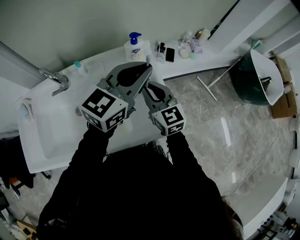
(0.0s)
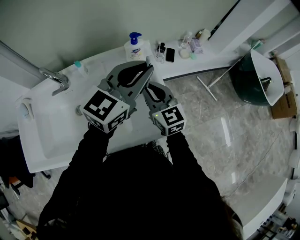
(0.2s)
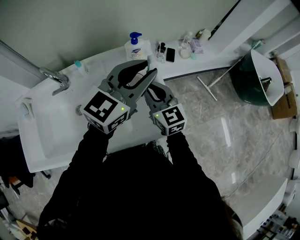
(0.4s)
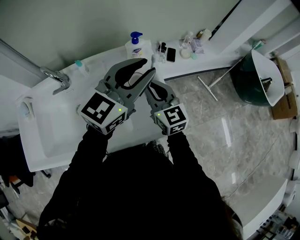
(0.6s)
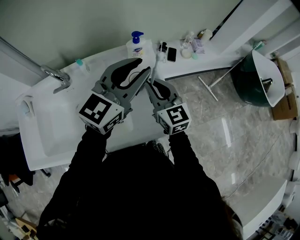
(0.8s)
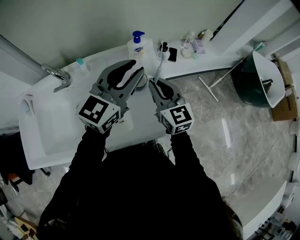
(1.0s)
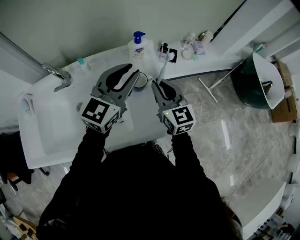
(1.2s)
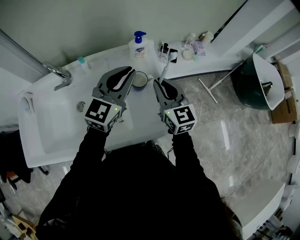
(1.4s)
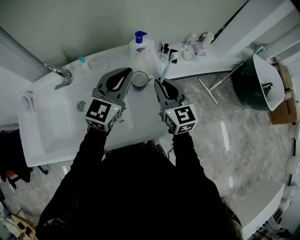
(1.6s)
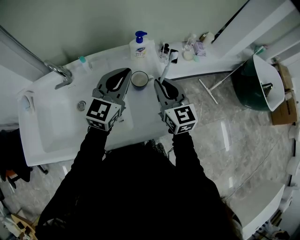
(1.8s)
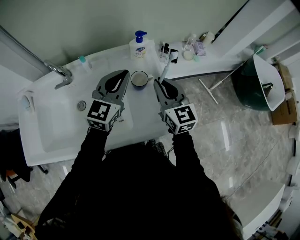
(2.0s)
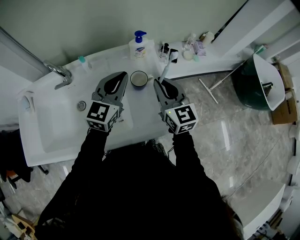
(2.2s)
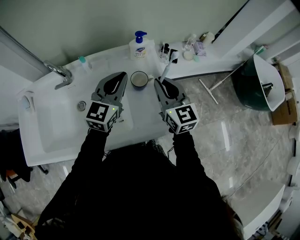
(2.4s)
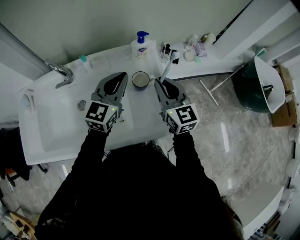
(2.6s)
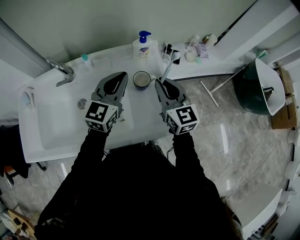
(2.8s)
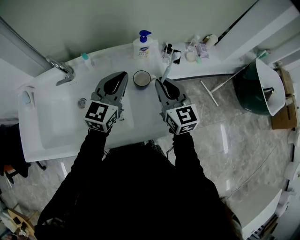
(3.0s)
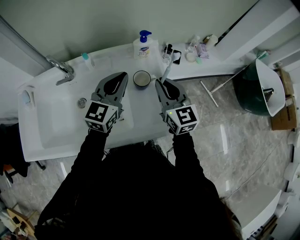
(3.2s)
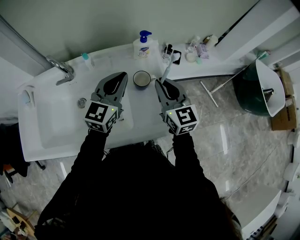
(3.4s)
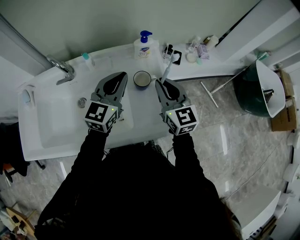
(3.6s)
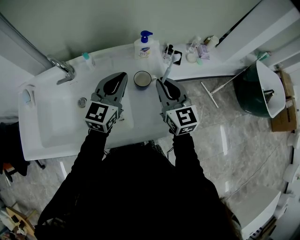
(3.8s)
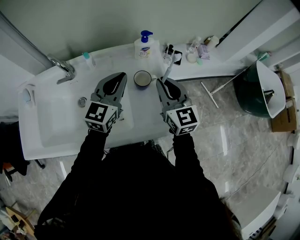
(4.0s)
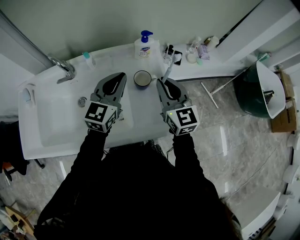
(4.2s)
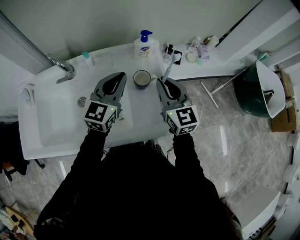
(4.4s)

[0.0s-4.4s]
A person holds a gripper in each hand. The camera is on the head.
0.0s to 1.4s: The left gripper is displaced to the left by about 5 cm.
1.4s to 3.0s: The left gripper moves about 5 cm.
3.0s to 4.4s: The two grippers keep their place.

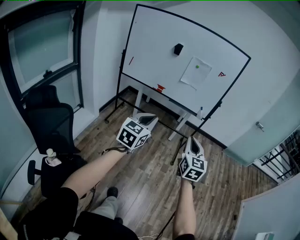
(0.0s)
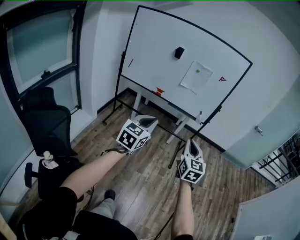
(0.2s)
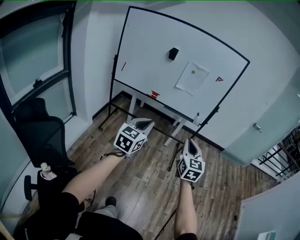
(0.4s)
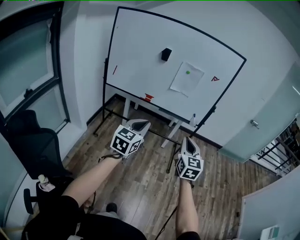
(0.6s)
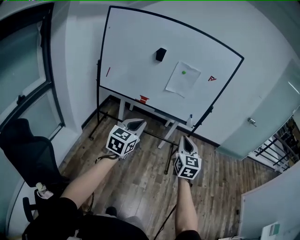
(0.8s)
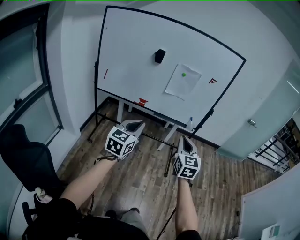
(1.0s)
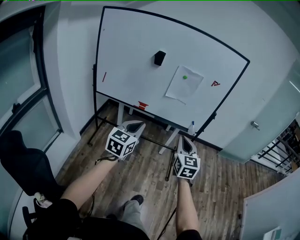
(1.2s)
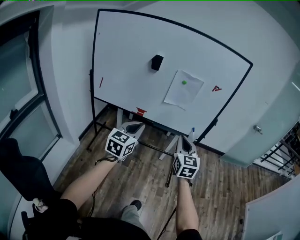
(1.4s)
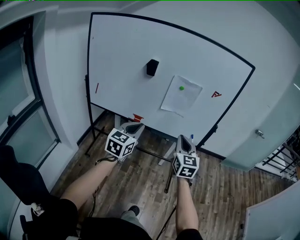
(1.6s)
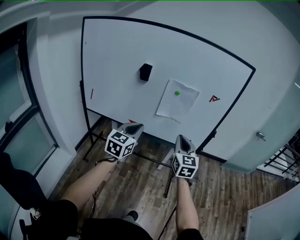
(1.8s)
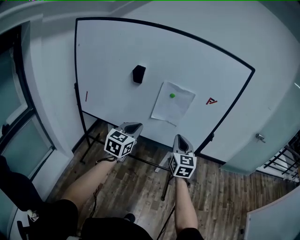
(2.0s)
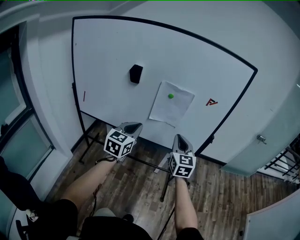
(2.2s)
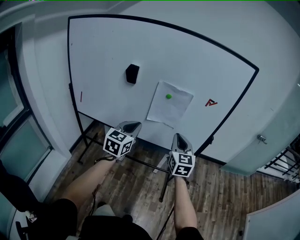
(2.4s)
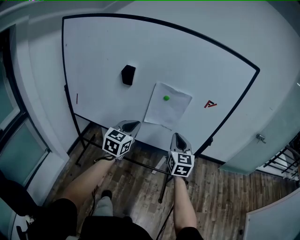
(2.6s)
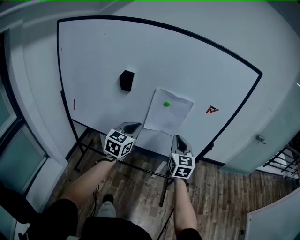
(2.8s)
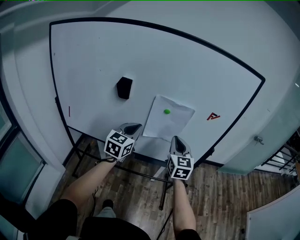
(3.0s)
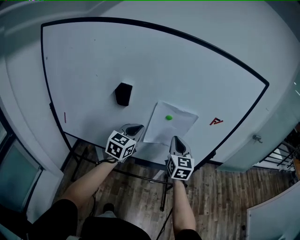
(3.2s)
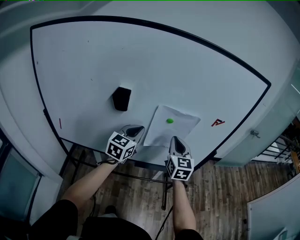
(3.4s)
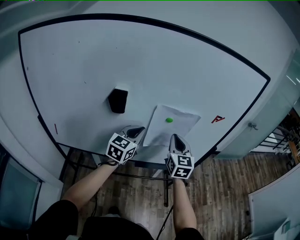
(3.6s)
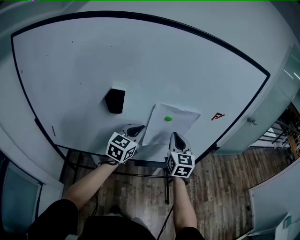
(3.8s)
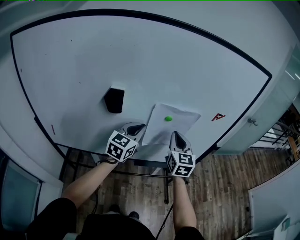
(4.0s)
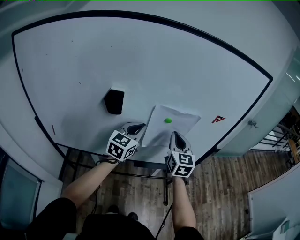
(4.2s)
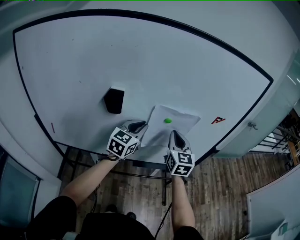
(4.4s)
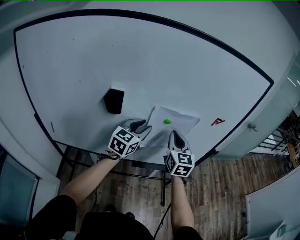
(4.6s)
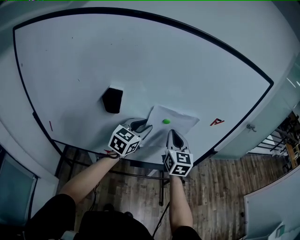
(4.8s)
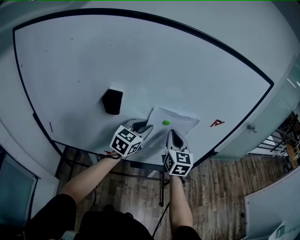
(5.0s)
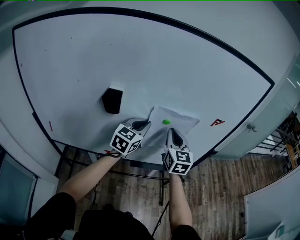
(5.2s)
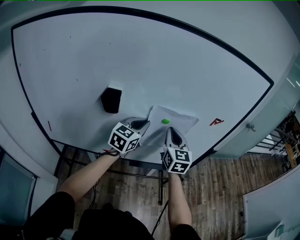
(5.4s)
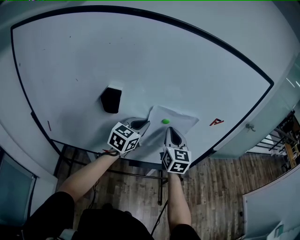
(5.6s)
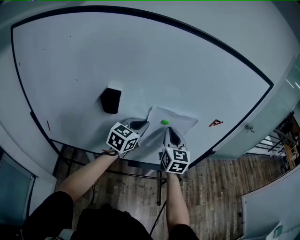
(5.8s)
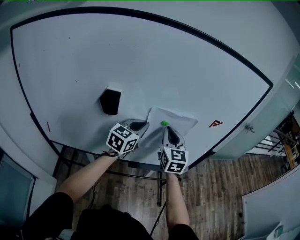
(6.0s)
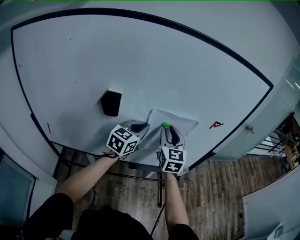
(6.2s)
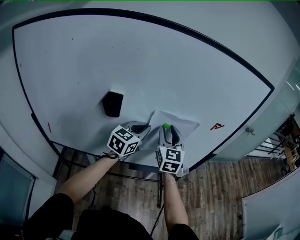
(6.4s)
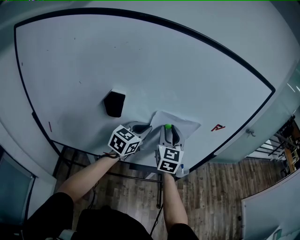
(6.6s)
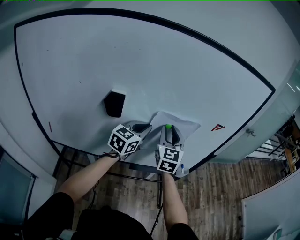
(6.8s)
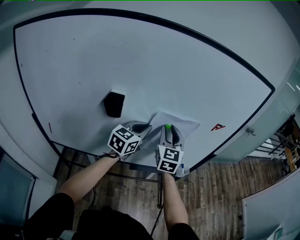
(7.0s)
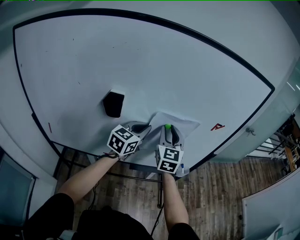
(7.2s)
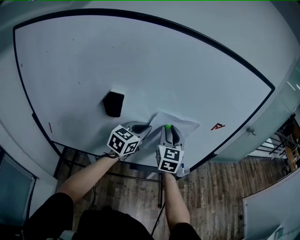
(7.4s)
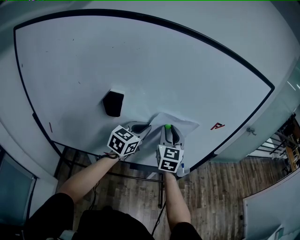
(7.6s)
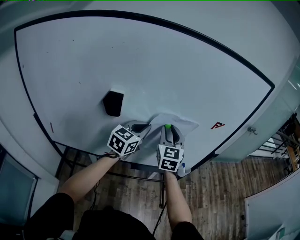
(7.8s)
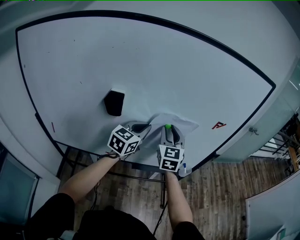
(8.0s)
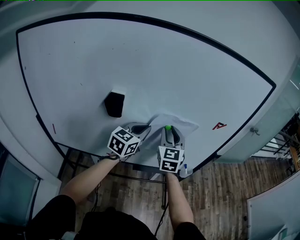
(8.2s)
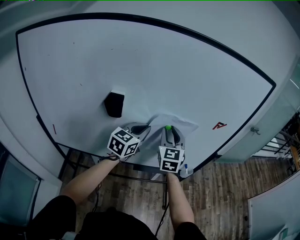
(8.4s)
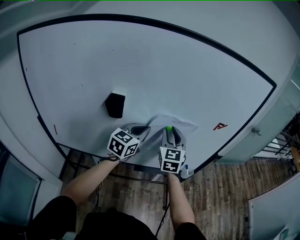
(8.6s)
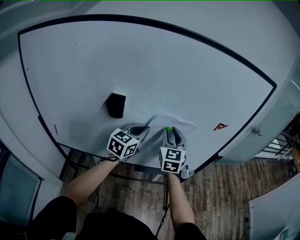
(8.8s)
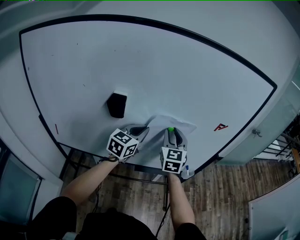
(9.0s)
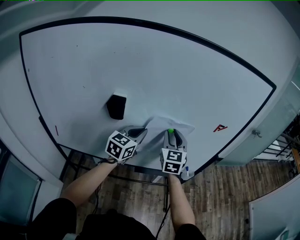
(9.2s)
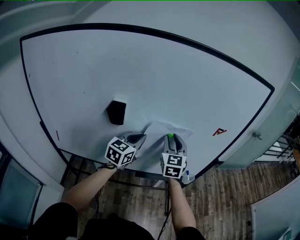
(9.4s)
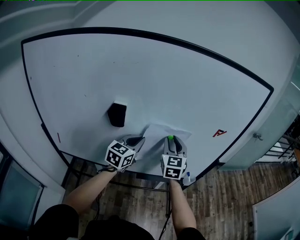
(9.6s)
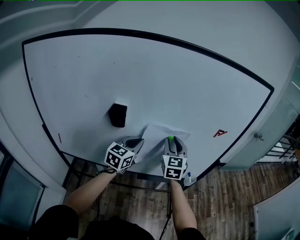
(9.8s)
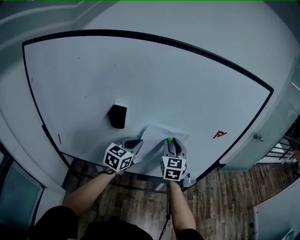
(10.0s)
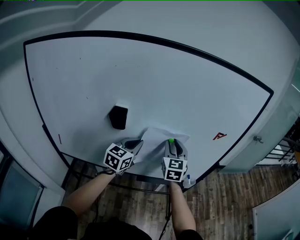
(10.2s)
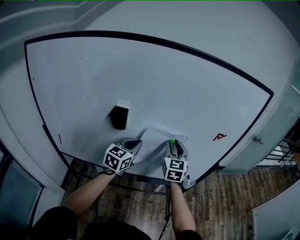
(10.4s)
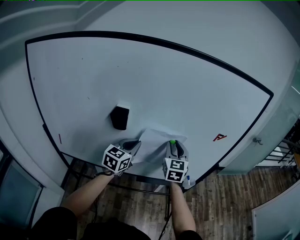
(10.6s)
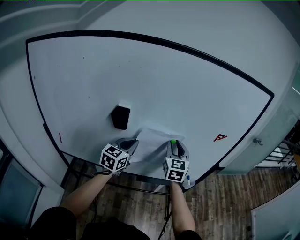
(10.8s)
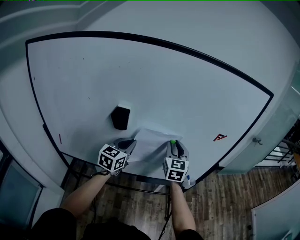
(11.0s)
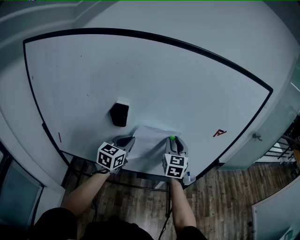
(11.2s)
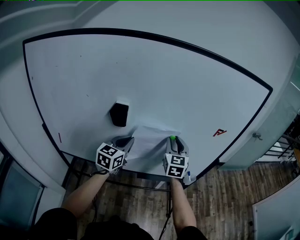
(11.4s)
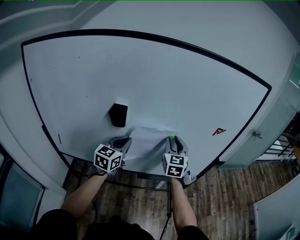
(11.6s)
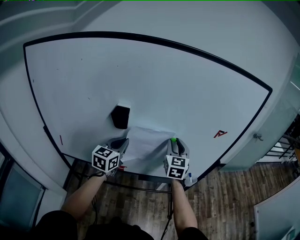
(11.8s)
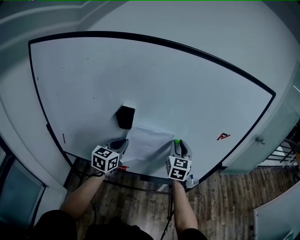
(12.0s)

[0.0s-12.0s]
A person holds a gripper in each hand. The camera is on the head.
0.0s to 1.6s: Both grippers are carried forward, about 40 cm.
1.6s to 3.0s: The grippers both shift forward by some 30 cm.
3.0s to 4.4s: Both grippers move forward, roughly 10 cm.
4.4s to 6.0s: The left gripper opens and closes again.
6.0s to 7.6s: The right gripper opens up.
7.6s to 10.4s: There are only small adjustments of the grippers.
10.4s to 12.0s: The left gripper heads to the left, covering some 10 cm.

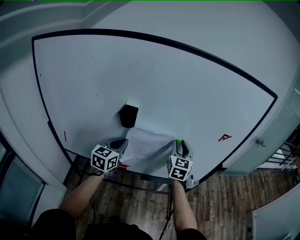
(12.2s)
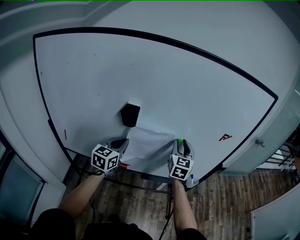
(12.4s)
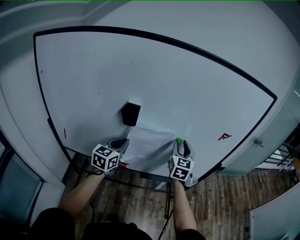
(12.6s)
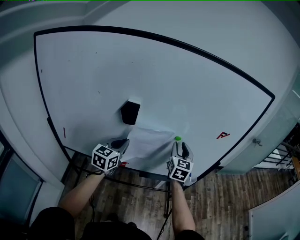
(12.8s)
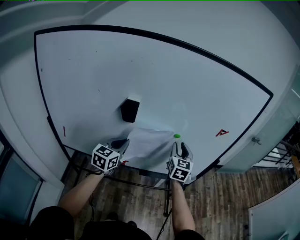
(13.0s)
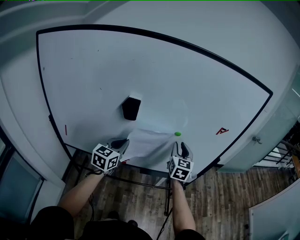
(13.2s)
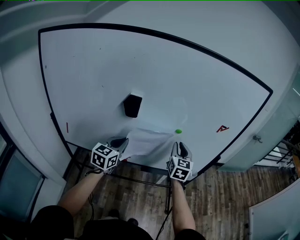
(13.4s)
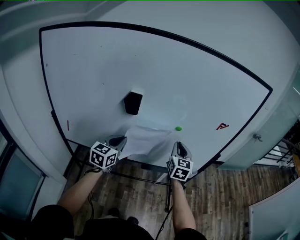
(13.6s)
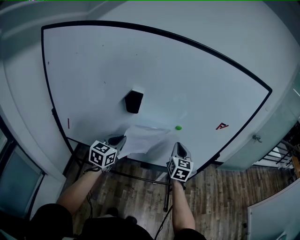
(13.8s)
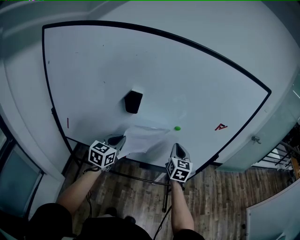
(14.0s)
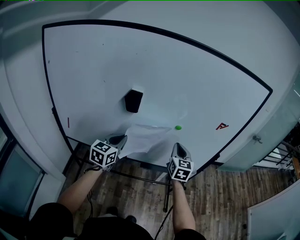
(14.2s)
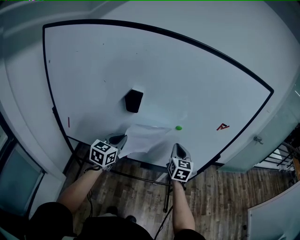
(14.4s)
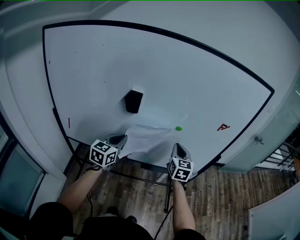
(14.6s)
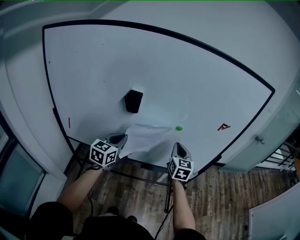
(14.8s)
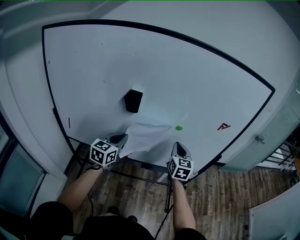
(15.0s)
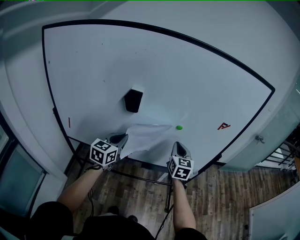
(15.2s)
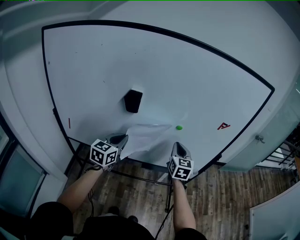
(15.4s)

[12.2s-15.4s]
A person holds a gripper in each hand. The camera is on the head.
12.2s to 13.8s: The two grippers go roughly 5 cm backward. The right gripper closes up.
13.8s to 15.4s: The grippers move only a little.

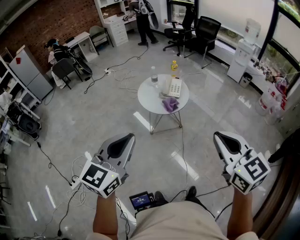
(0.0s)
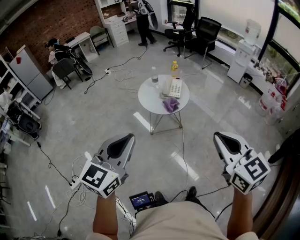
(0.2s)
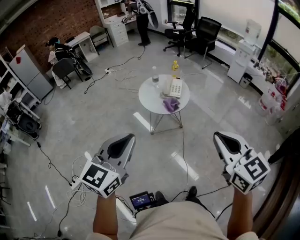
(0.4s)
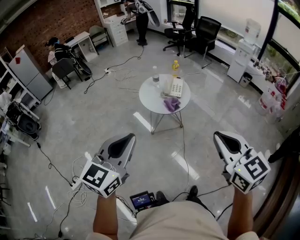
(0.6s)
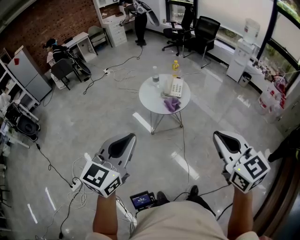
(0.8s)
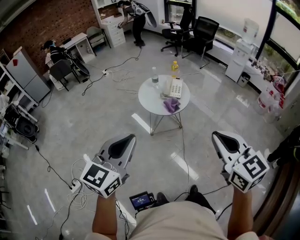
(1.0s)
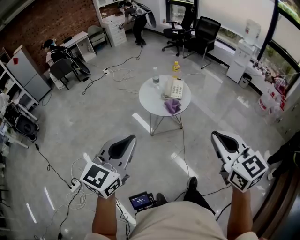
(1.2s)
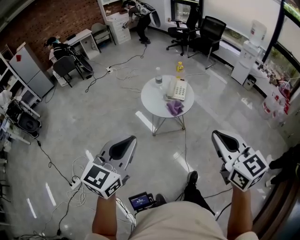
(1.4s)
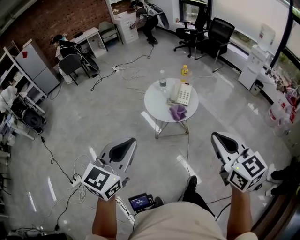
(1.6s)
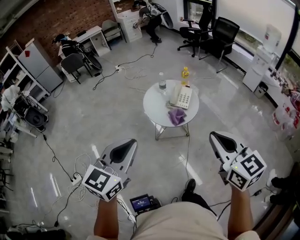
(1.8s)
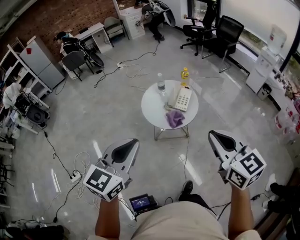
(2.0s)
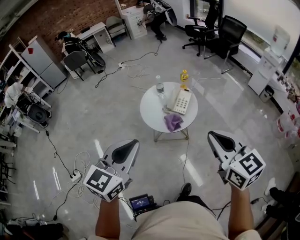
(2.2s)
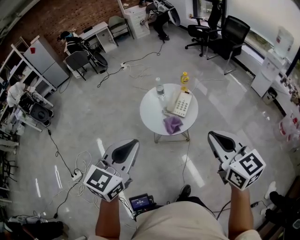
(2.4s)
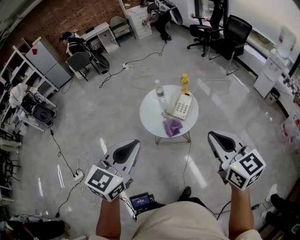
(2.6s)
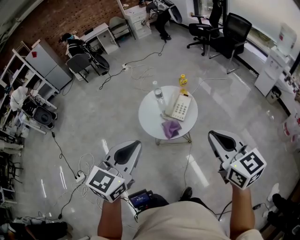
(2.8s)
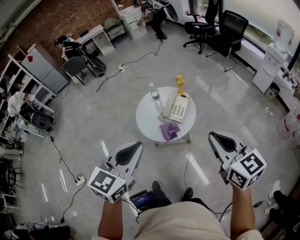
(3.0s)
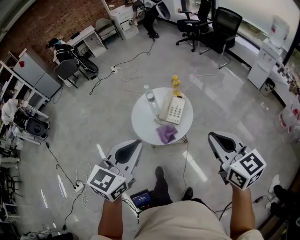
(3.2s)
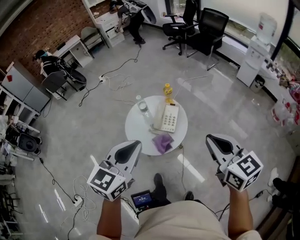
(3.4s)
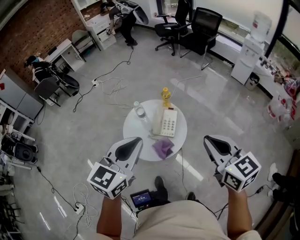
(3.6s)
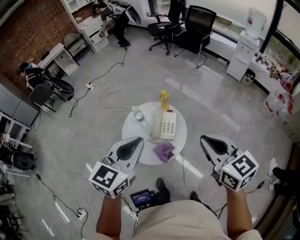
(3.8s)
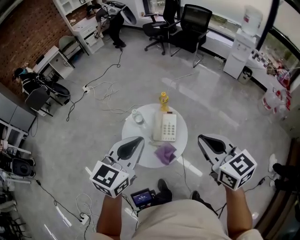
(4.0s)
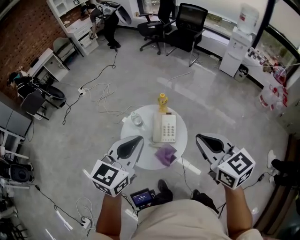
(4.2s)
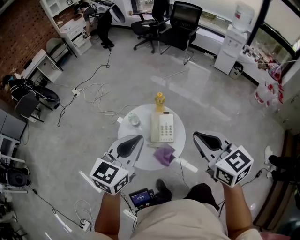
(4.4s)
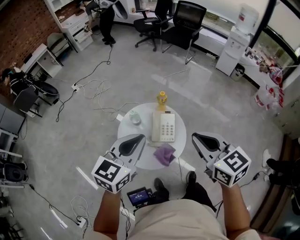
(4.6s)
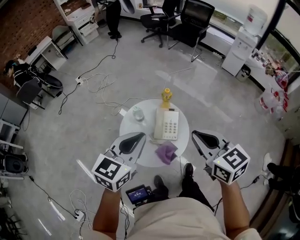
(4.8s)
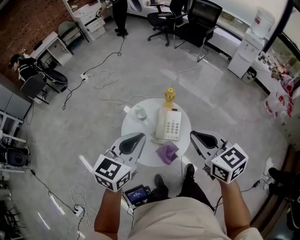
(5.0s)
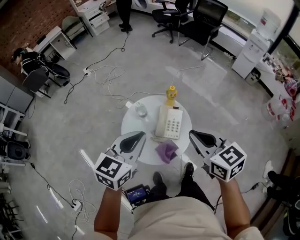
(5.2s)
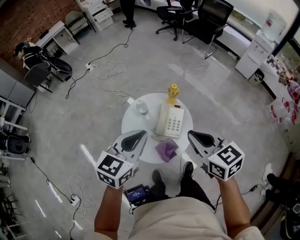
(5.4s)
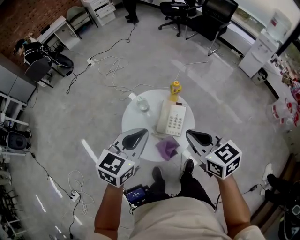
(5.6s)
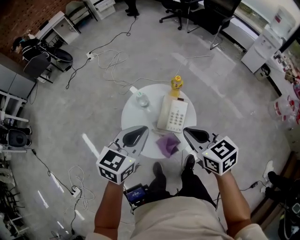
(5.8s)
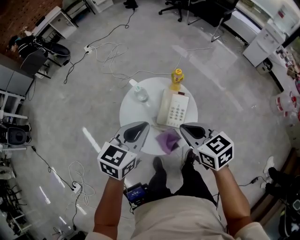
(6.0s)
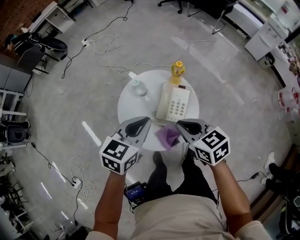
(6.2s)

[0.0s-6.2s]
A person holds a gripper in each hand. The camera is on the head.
0.0s to 1.6s: The two grippers go approximately 10 cm forward.
1.6s to 3.2s: The two grippers go roughly 30 cm forward and to the right.
3.2s to 4.6s: The left gripper goes some 20 cm forward, and swivels some 20 degrees; the right gripper moves forward and to the left, roughly 20 cm.
4.6s to 6.2s: The grippers both shift downward by some 20 cm. The left gripper rotates approximately 20 degrees. The right gripper changes its angle by approximately 30 degrees.
